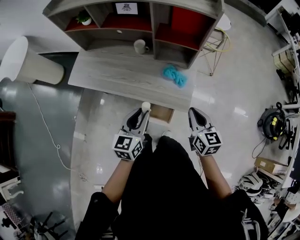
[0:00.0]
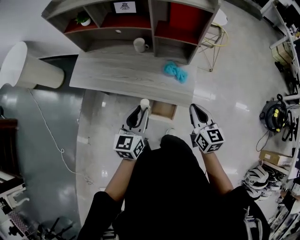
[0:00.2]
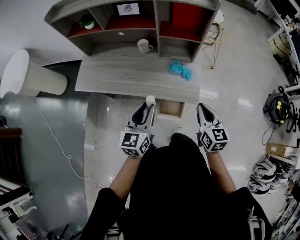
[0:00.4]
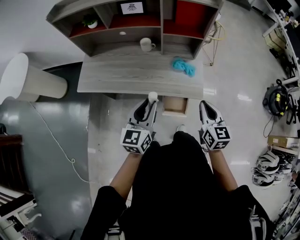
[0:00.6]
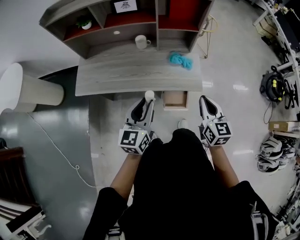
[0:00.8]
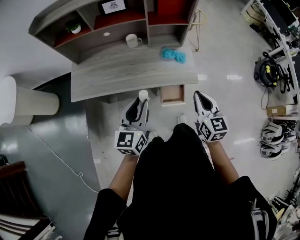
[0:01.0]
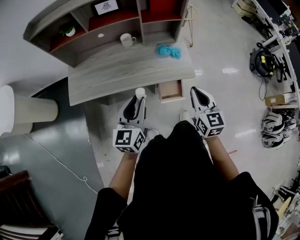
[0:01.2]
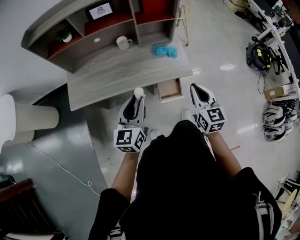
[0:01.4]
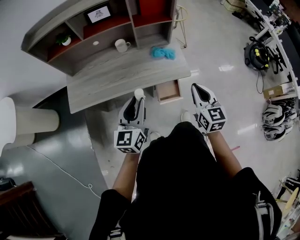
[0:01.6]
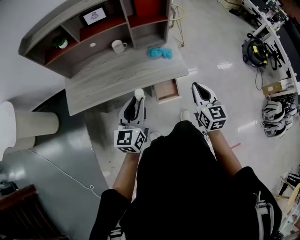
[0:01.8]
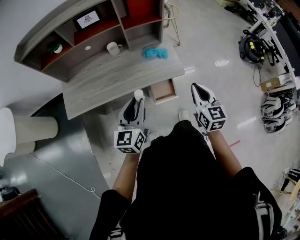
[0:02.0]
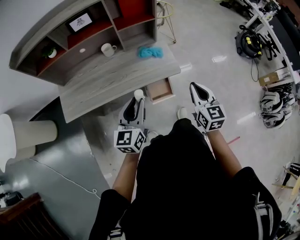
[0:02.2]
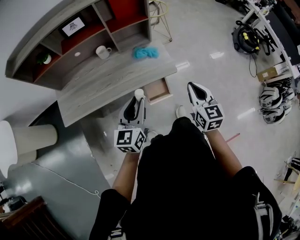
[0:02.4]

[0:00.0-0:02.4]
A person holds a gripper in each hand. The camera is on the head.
0:00.0 to 0:01.2: The left gripper moves to the left and backward, some 15 cm; the right gripper shifts roughly 20 cm backward and to the left, and rotates about 30 degrees.
0:01.2 to 0:02.4: Both grippers travel together to the right, about 10 cm.

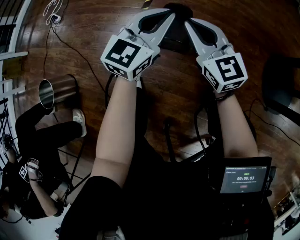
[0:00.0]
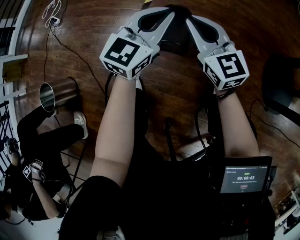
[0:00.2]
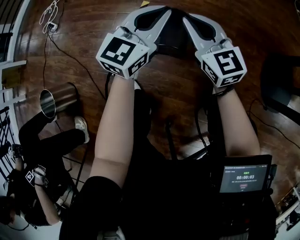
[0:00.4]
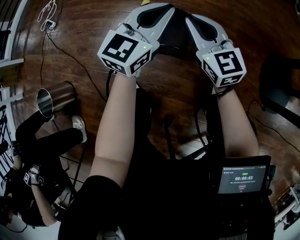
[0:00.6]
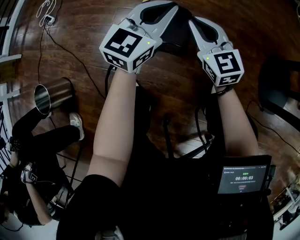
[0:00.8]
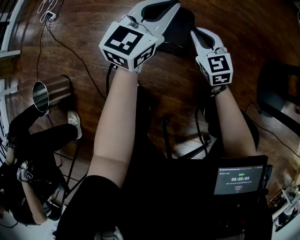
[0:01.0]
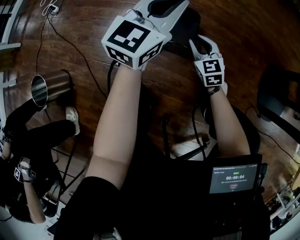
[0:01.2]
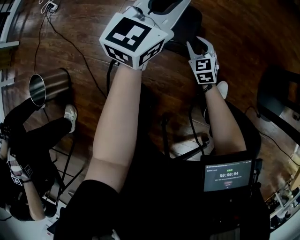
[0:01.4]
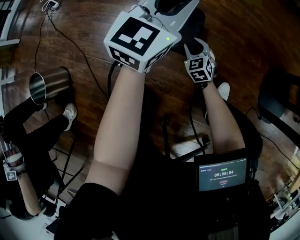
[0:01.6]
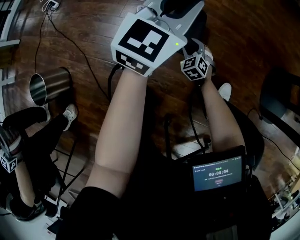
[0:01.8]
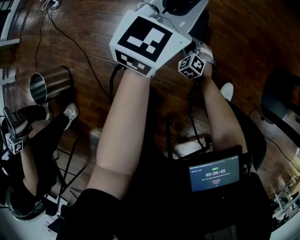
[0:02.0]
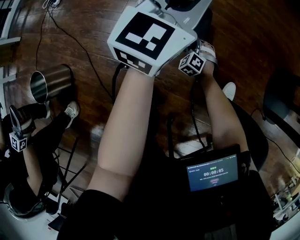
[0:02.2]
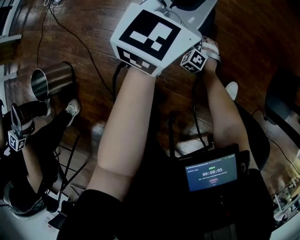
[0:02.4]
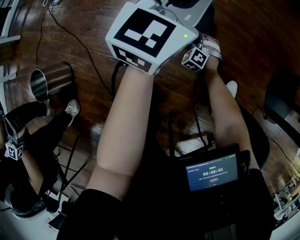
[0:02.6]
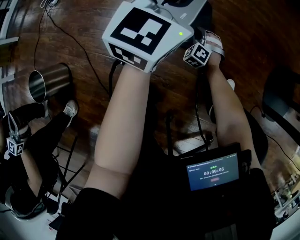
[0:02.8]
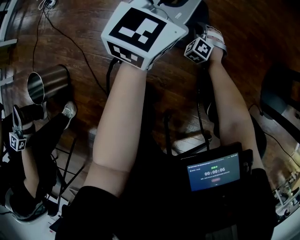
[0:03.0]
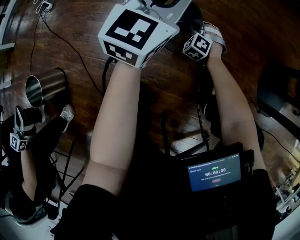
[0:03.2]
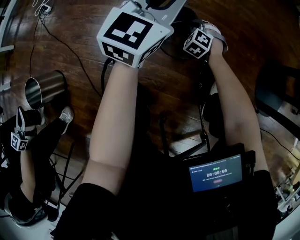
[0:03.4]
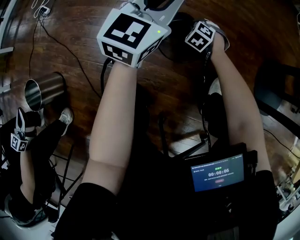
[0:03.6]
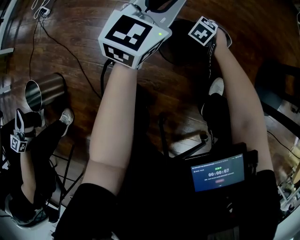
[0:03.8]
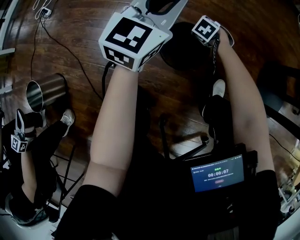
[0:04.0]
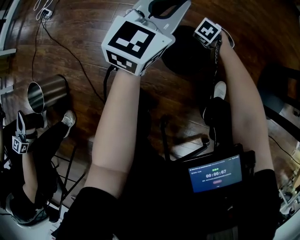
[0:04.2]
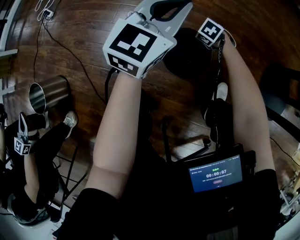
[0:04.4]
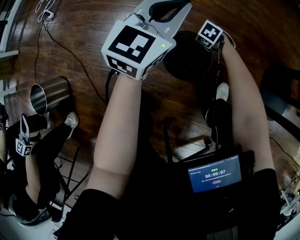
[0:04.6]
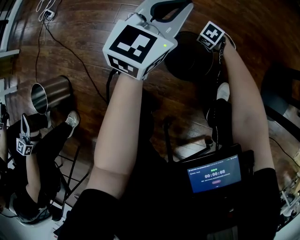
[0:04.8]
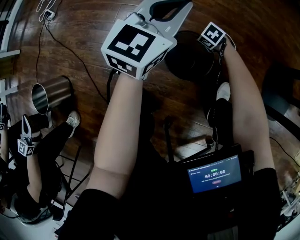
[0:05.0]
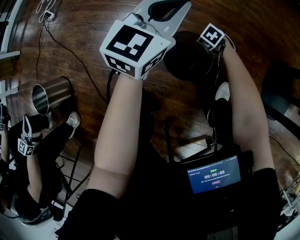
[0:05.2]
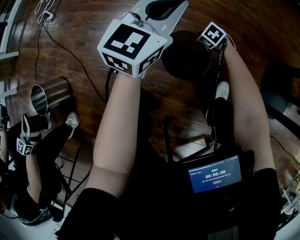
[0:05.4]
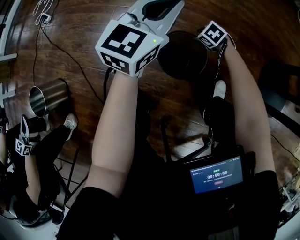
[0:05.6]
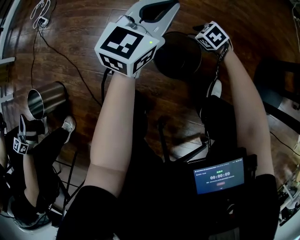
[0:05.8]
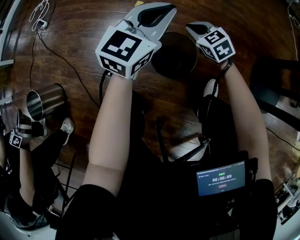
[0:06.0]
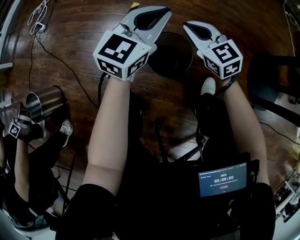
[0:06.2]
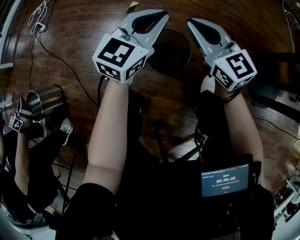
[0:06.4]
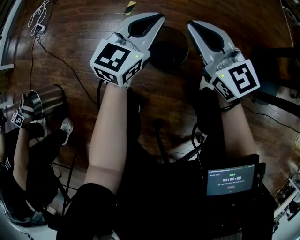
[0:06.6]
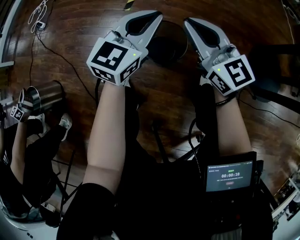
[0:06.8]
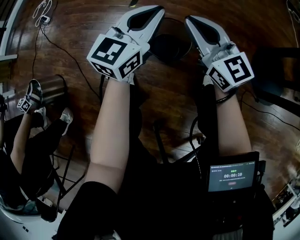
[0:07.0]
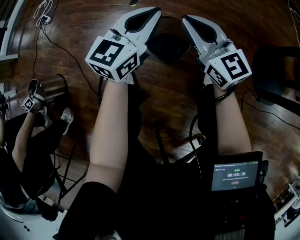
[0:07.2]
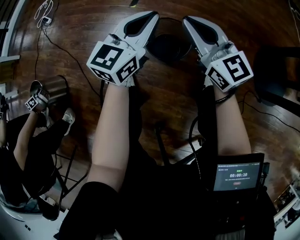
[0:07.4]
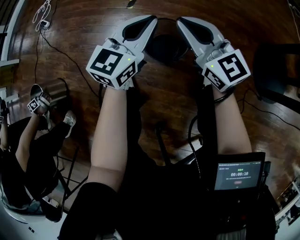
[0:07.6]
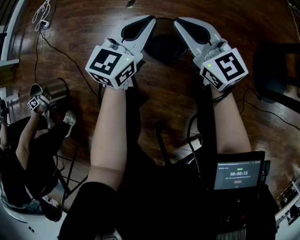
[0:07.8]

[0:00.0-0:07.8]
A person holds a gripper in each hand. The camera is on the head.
0:00.0 to 0:01.6: The left gripper goes approximately 5 cm to the left and forward, while the right gripper goes some 25 cm downward, points its fingers approximately 30 degrees further downward, and opens.
0:01.6 to 0:03.2: The right gripper travels forward by some 5 cm, goes downward and returns, roughly 10 cm each way, swivels about 40 degrees, and closes.
0:03.2 to 0:04.6: The right gripper shifts by some 10 cm, and changes its angle by approximately 50 degrees.
0:04.6 to 0:06.2: The right gripper goes about 30 cm upward, tips its fingers upward by about 50 degrees, and opens and closes again.
0:06.2 to 0:07.8: The left gripper heads backward, covering roughly 5 cm. Meanwhile the right gripper moves backward and upward, about 10 cm, and swivels approximately 20 degrees.

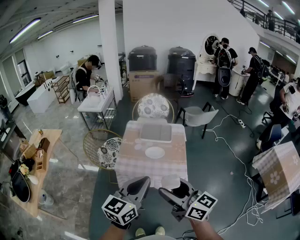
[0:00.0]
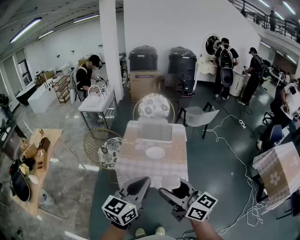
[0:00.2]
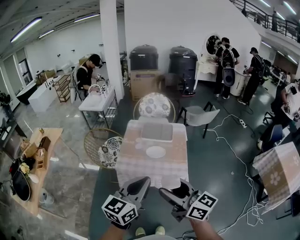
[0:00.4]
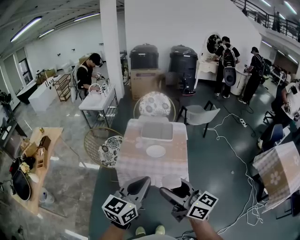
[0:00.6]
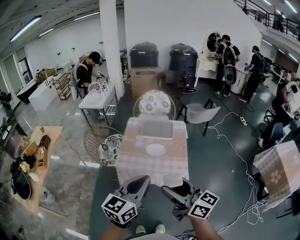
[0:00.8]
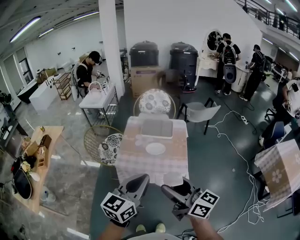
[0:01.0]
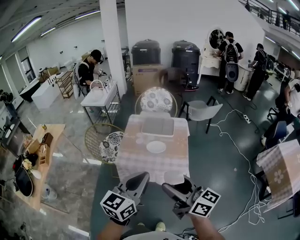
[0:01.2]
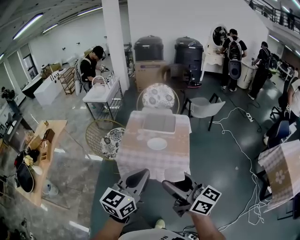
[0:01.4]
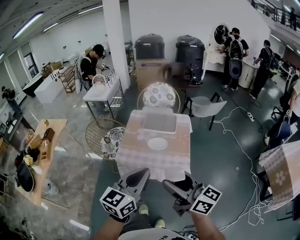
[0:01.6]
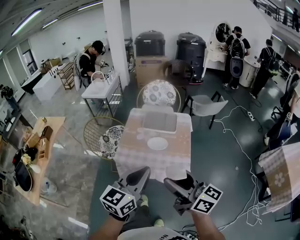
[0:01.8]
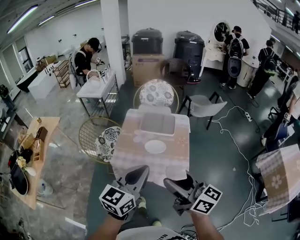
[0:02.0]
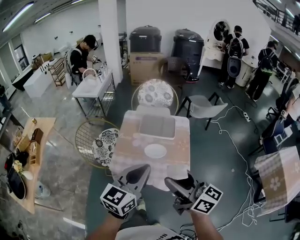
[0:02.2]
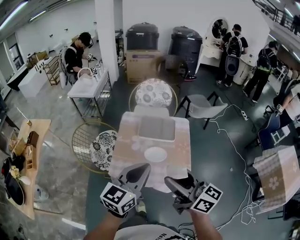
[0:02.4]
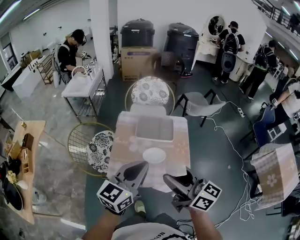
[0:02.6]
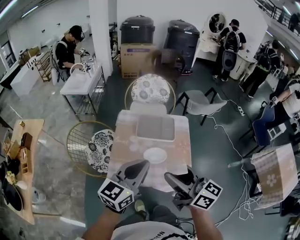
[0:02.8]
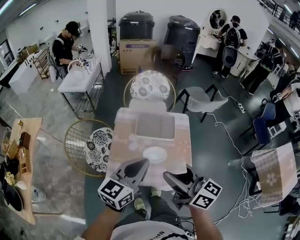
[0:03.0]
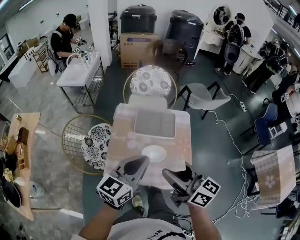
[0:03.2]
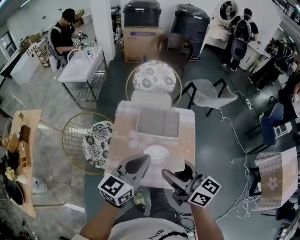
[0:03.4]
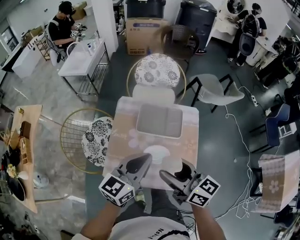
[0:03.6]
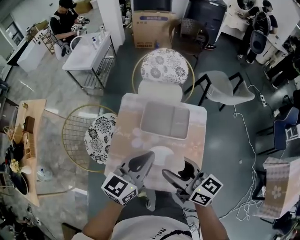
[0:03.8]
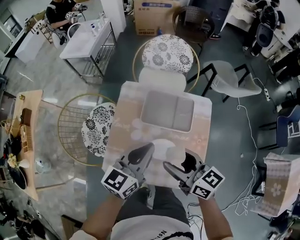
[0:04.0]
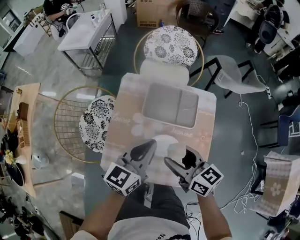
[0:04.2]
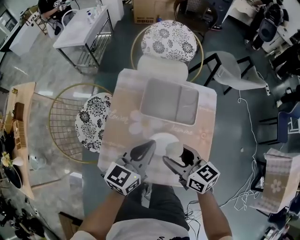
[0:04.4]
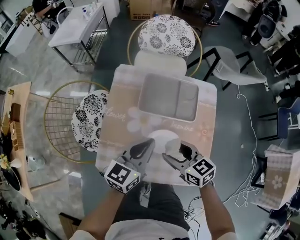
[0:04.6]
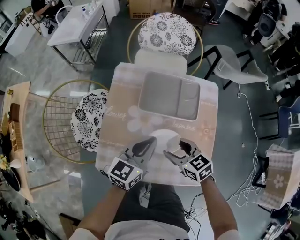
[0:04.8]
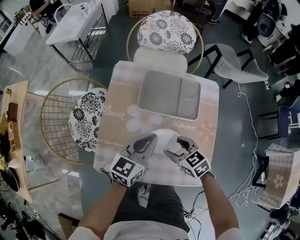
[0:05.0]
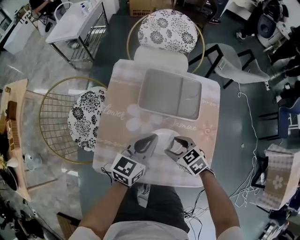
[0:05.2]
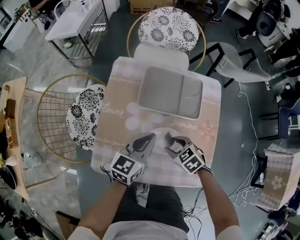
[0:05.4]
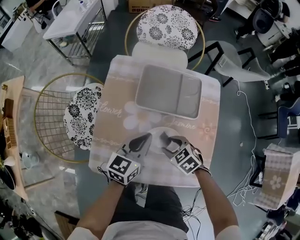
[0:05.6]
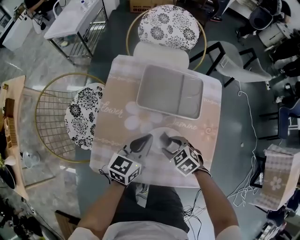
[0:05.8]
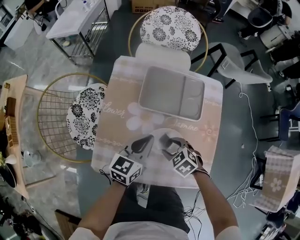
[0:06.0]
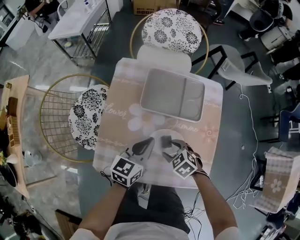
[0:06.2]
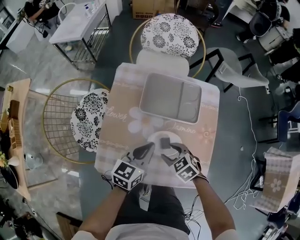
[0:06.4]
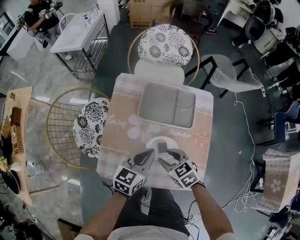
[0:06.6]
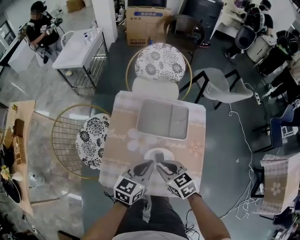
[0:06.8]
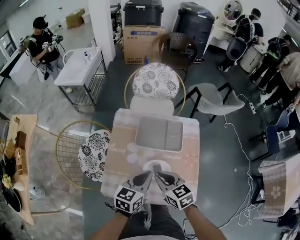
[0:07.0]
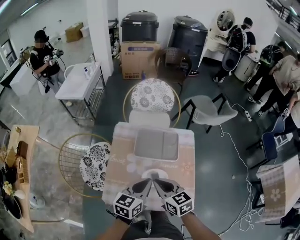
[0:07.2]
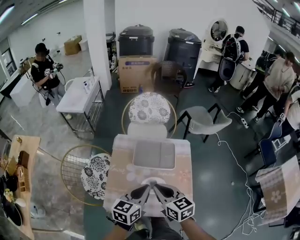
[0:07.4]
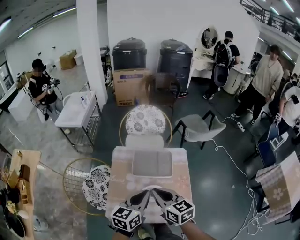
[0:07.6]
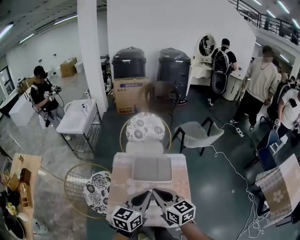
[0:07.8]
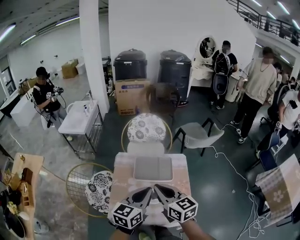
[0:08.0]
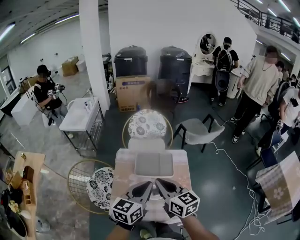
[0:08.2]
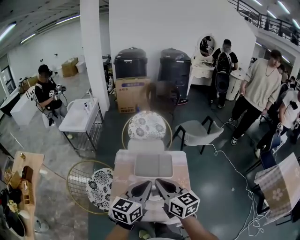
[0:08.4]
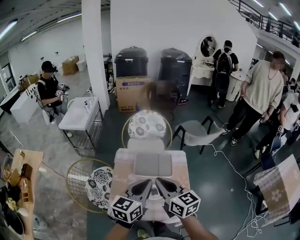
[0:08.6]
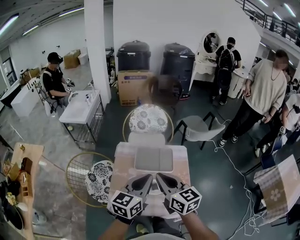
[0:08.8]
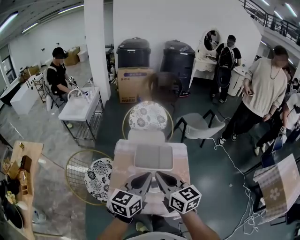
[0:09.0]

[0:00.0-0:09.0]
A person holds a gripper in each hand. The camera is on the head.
0:00.0 to 0:01.6: The grippers make only small movements.
0:01.6 to 0:03.0: Both grippers move forward, some 25 cm.
0:03.0 to 0:04.4: The grippers both shift downward and forward by approximately 25 cm. The right gripper swivels about 30 degrees.
0:04.4 to 0:06.0: The right gripper shifts approximately 20 cm downward, and tilts its fingers about 40 degrees downward. The left gripper goes some 15 cm downward.
0:06.0 to 0:07.6: Both grippers travel together upward, approximately 30 cm. The right gripper points its fingers approximately 40 degrees further upward, and closes up.
0:07.6 to 0:09.0: Both grippers travel together upward, about 10 cm.

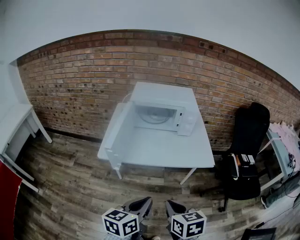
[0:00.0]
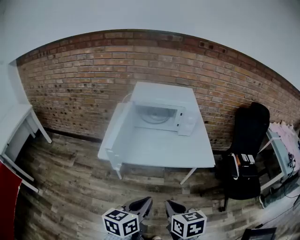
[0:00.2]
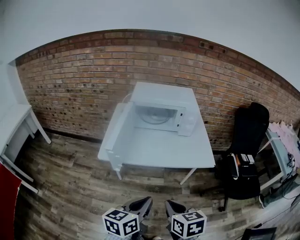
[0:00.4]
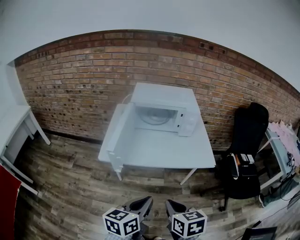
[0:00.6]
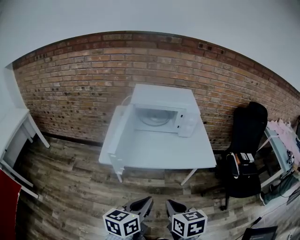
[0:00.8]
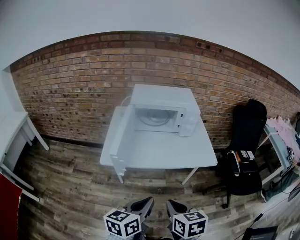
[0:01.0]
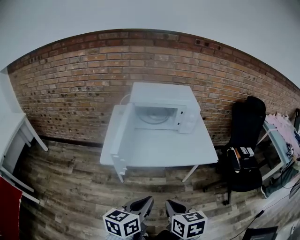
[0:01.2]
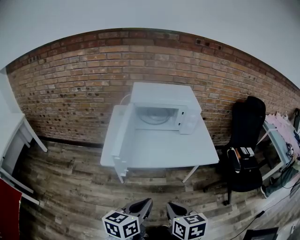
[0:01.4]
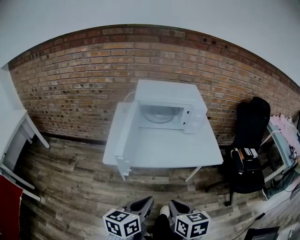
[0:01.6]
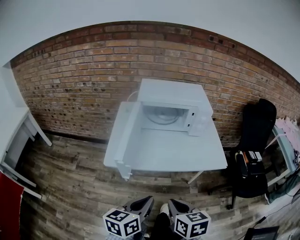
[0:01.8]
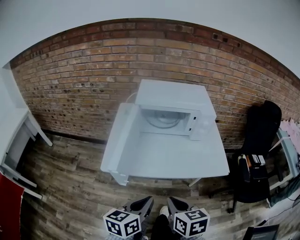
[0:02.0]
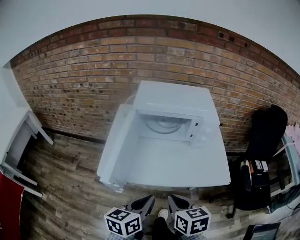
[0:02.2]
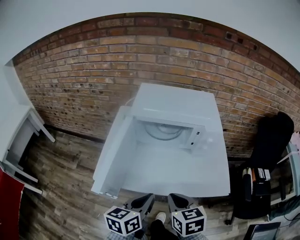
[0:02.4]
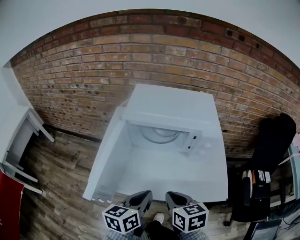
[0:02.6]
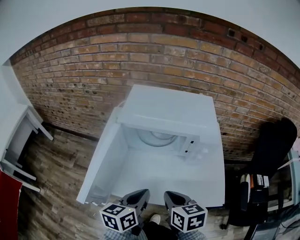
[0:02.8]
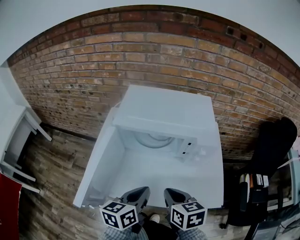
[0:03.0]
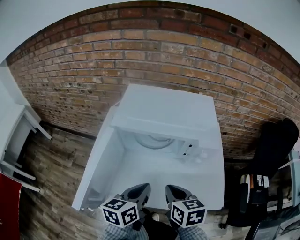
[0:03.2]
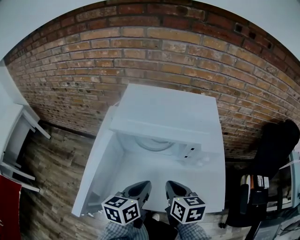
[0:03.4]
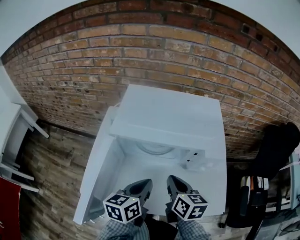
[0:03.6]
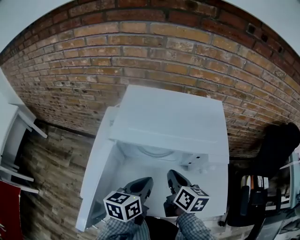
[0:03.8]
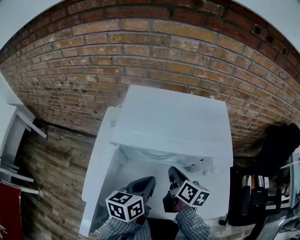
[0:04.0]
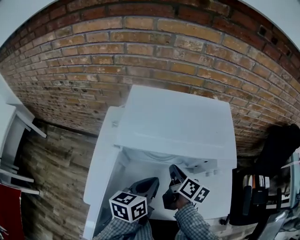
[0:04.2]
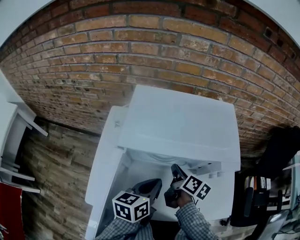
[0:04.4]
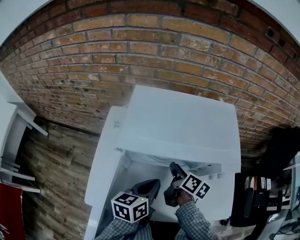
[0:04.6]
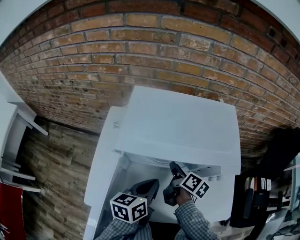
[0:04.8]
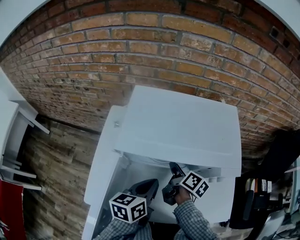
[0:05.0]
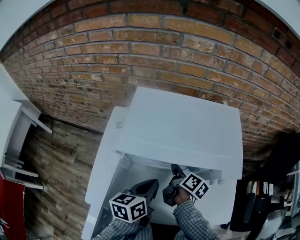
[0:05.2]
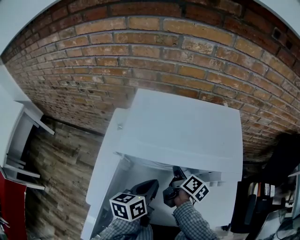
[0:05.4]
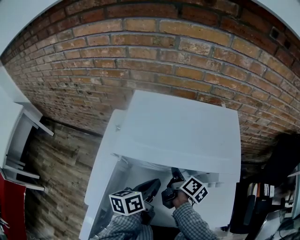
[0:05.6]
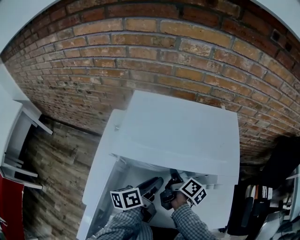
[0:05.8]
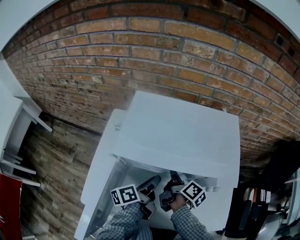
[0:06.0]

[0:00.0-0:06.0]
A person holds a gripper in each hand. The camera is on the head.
0:00.0 to 0:01.6: The right gripper moves about 5 cm.
0:01.6 to 0:03.0: The right gripper shifts by some 35 cm.
0:03.0 to 0:04.4: The right gripper shifts by some 25 cm, and rotates around the line of its fingers by roughly 40 degrees, clockwise from behind.
0:04.4 to 0:06.0: The right gripper opens, then closes again.
